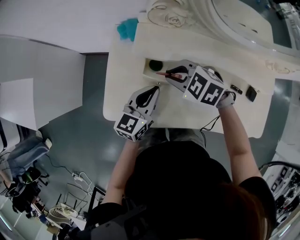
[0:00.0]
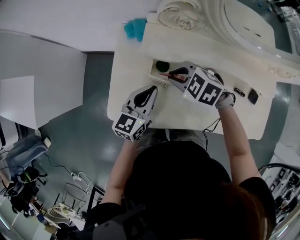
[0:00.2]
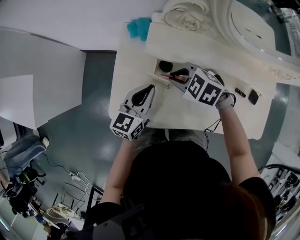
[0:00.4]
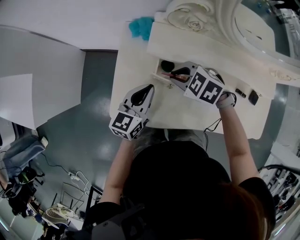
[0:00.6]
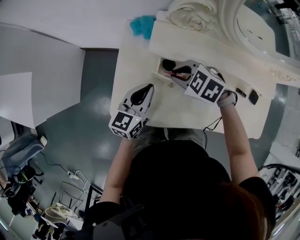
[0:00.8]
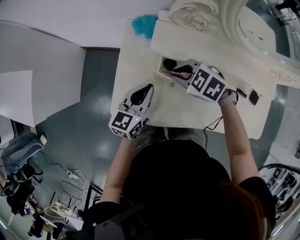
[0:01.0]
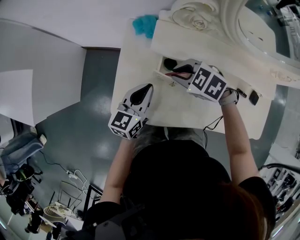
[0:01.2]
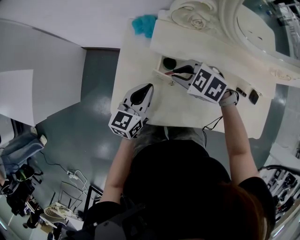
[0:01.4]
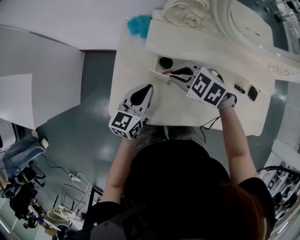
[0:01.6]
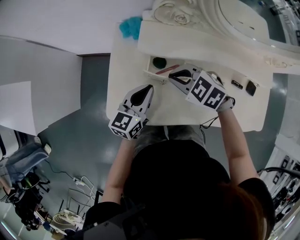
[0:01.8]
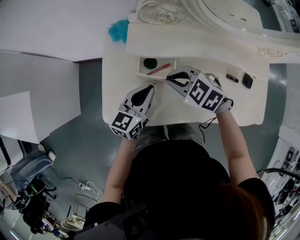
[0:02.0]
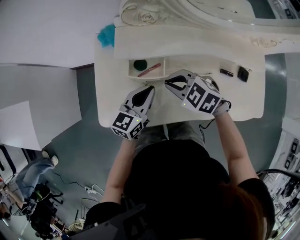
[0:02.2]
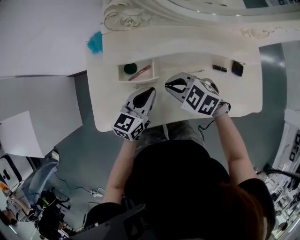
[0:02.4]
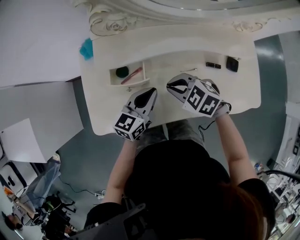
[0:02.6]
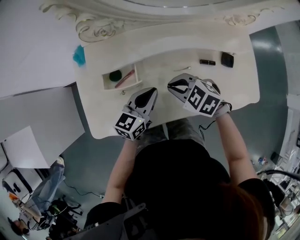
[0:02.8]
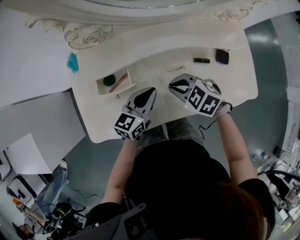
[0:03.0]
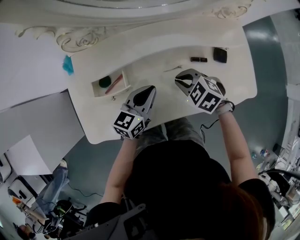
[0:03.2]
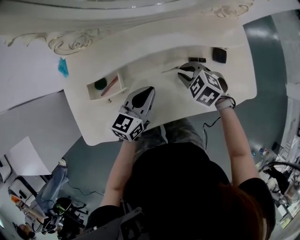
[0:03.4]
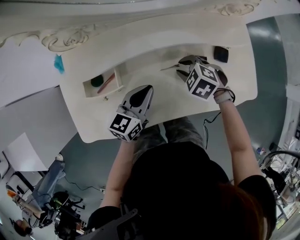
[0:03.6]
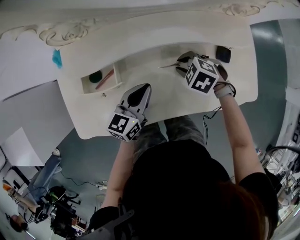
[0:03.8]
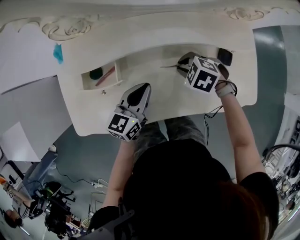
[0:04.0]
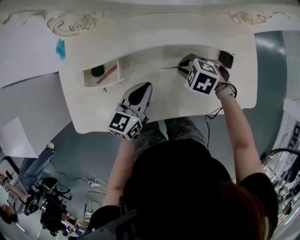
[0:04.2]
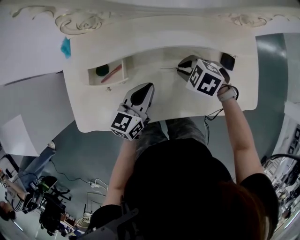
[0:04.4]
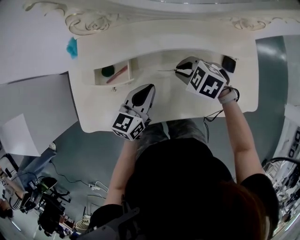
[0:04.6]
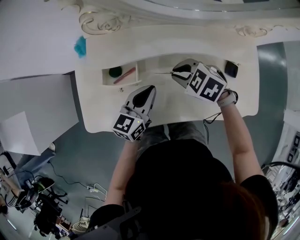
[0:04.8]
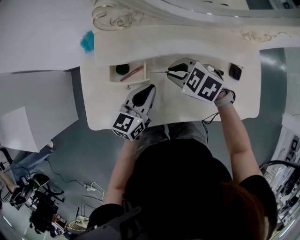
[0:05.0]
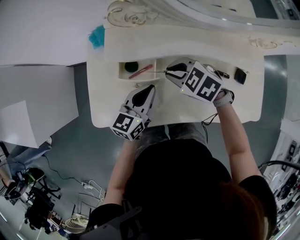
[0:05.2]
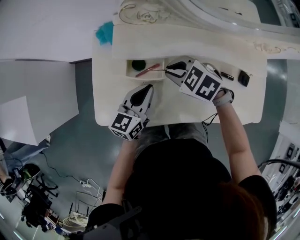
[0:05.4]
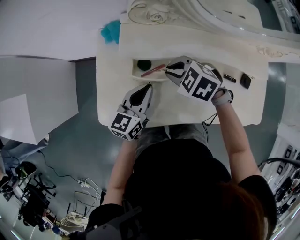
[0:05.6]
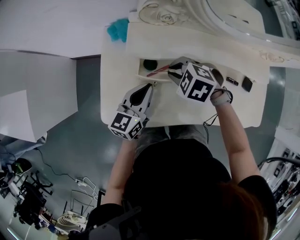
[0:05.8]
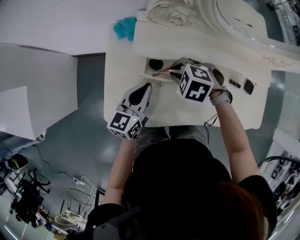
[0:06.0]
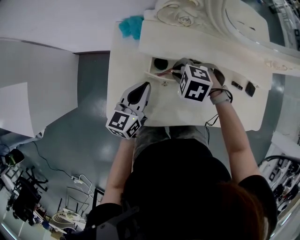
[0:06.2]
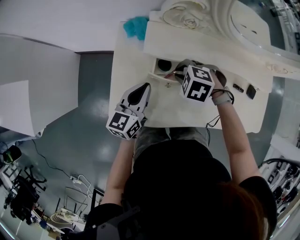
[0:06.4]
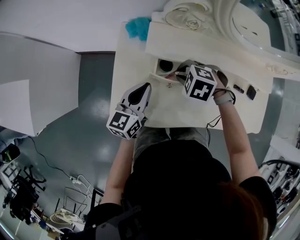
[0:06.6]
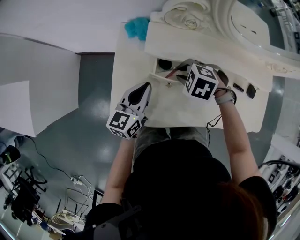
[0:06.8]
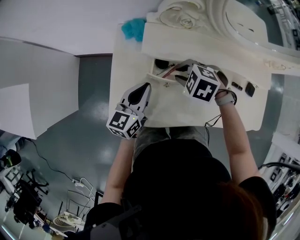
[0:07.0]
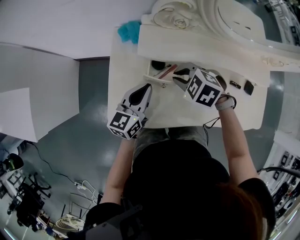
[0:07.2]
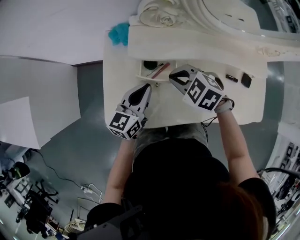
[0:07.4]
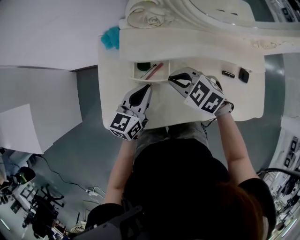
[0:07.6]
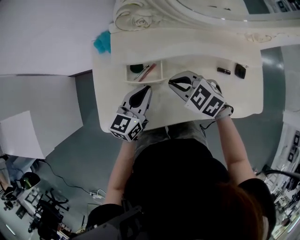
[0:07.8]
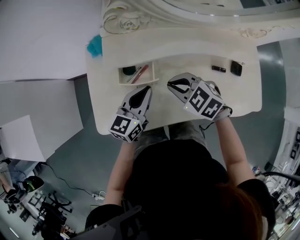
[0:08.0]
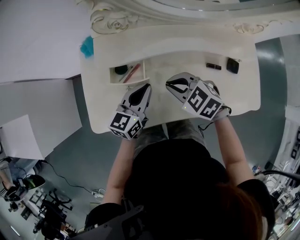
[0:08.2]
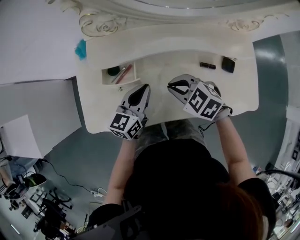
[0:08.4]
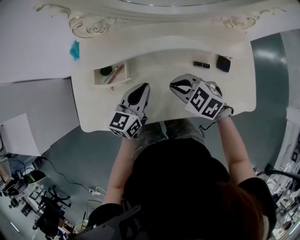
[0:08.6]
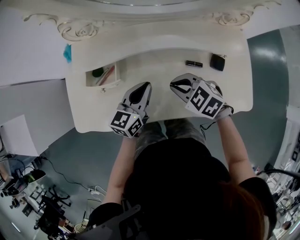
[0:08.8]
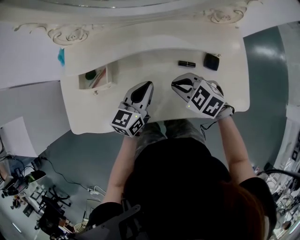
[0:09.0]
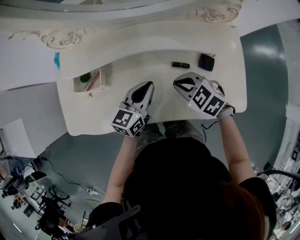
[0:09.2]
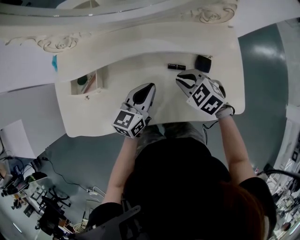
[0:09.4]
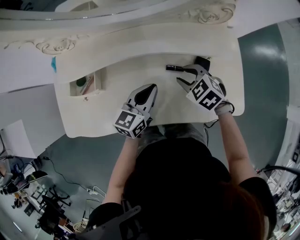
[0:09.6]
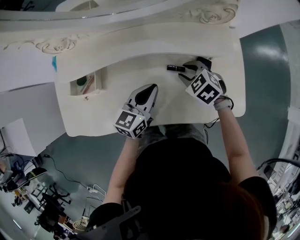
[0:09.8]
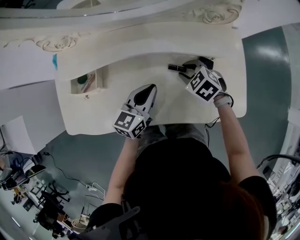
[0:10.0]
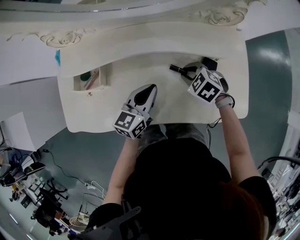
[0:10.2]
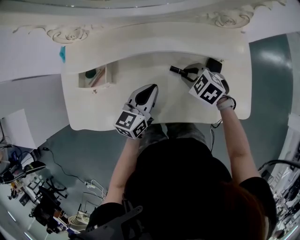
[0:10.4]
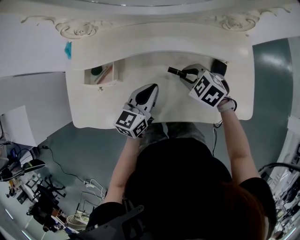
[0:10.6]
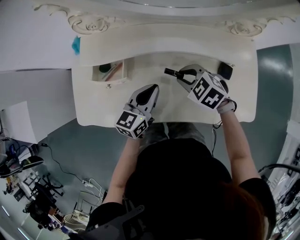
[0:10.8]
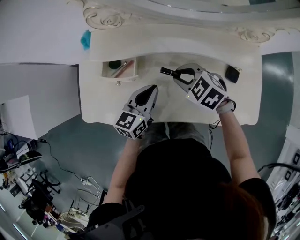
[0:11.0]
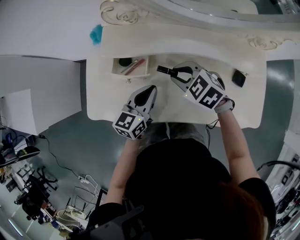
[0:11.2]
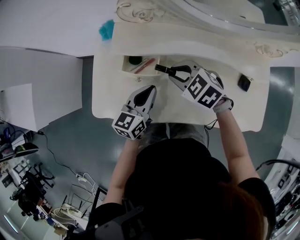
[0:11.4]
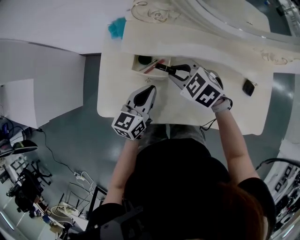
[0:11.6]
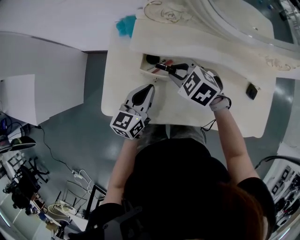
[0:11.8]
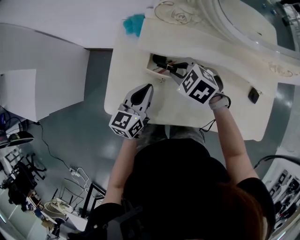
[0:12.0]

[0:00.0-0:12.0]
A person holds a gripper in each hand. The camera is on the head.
0:00.0 to 0:01.6: The left gripper moves to the left, roughly 5 cm.
0:01.6 to 0:03.0: The right gripper is displaced to the right and backward by some 20 cm, and rotates roughly 20 degrees, while the left gripper moves to the right, approximately 20 cm, and swivels about 30 degrees.
0:03.0 to 0:04.4: The right gripper shifts approximately 10 cm to the right and downward.
0:04.4 to 0:06.0: The left gripper shifts some 20 cm to the left; the right gripper heads to the left and forward, covering approximately 25 cm.
0:06.0 to 0:07.6: The right gripper shifts by approximately 5 cm, and turns by roughly 30 degrees.
0:07.6 to 0:09.0: The left gripper moves to the right, roughly 25 cm. Meanwhile the right gripper goes some 25 cm to the right and backward.
0:09.0 to 0:10.4: The right gripper moves to the right and downward, approximately 10 cm.
0:10.4 to 0:12.0: The two grippers go some 30 cm to the left.

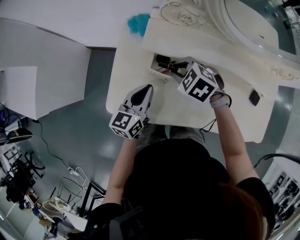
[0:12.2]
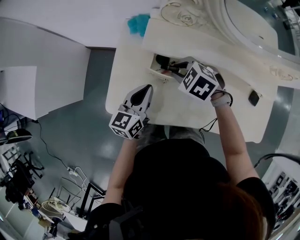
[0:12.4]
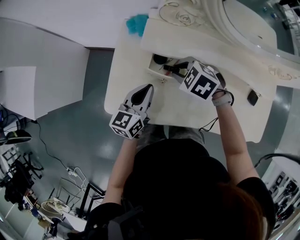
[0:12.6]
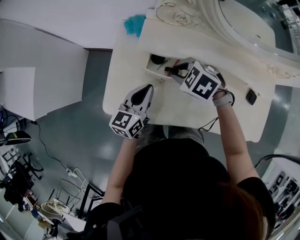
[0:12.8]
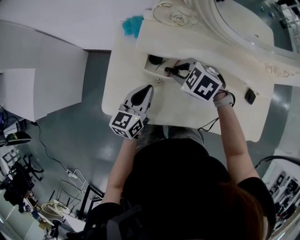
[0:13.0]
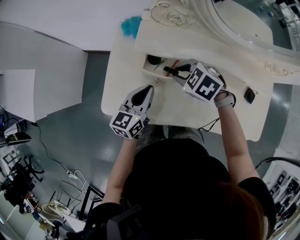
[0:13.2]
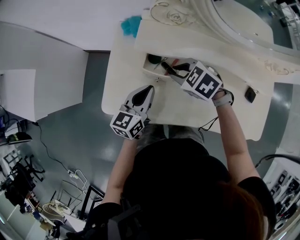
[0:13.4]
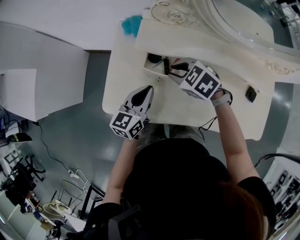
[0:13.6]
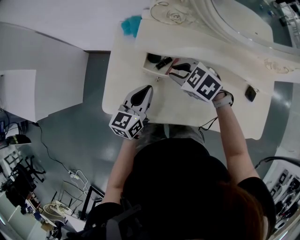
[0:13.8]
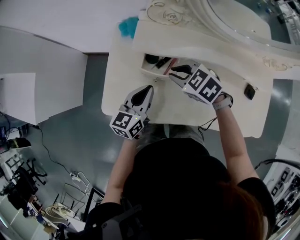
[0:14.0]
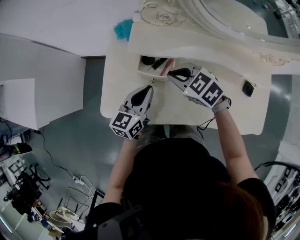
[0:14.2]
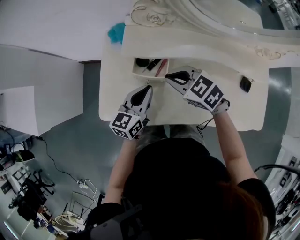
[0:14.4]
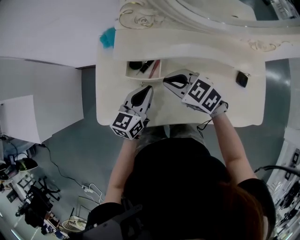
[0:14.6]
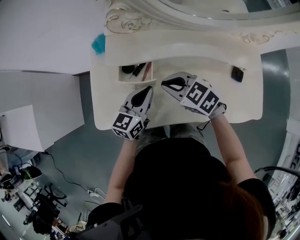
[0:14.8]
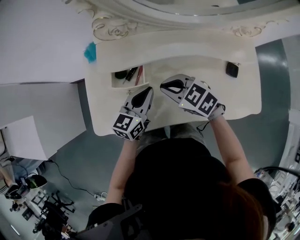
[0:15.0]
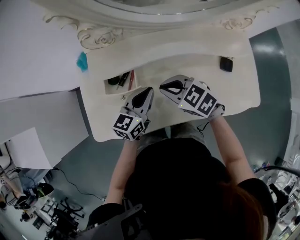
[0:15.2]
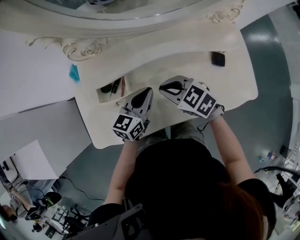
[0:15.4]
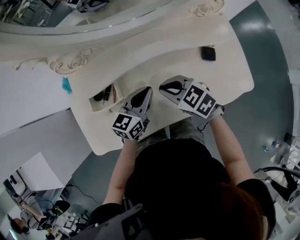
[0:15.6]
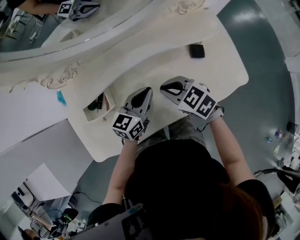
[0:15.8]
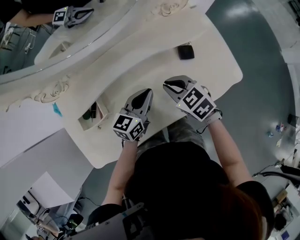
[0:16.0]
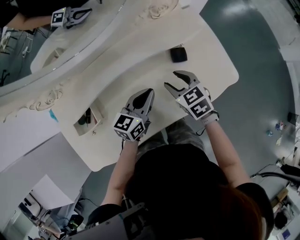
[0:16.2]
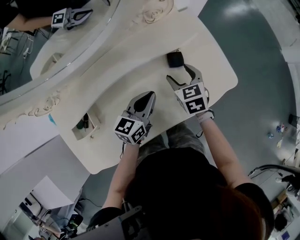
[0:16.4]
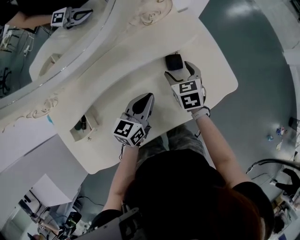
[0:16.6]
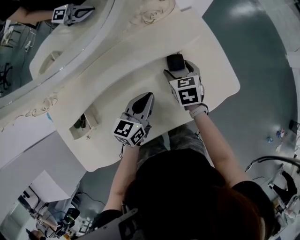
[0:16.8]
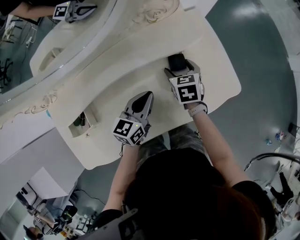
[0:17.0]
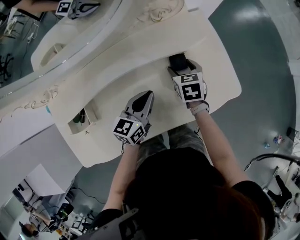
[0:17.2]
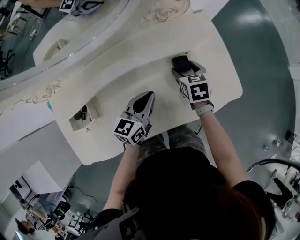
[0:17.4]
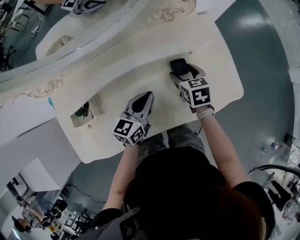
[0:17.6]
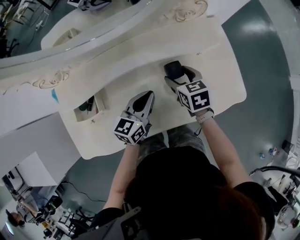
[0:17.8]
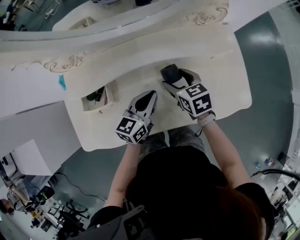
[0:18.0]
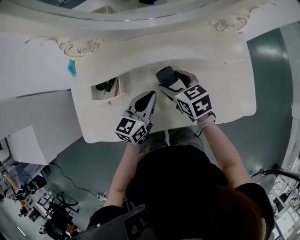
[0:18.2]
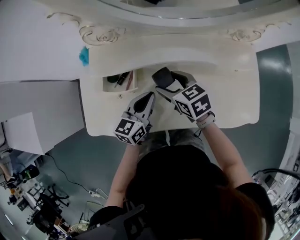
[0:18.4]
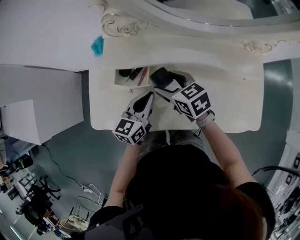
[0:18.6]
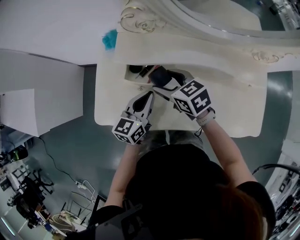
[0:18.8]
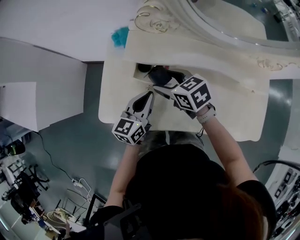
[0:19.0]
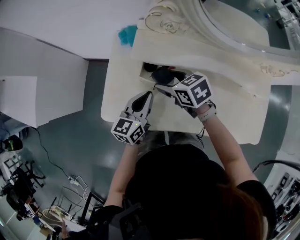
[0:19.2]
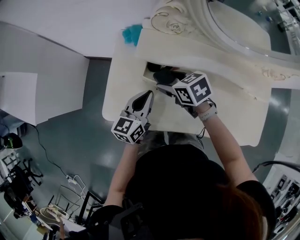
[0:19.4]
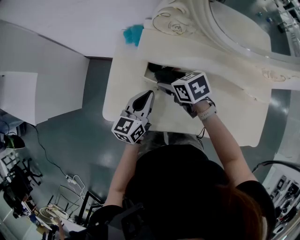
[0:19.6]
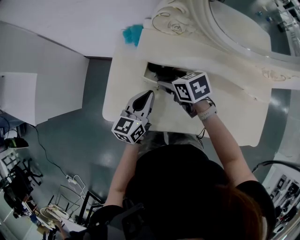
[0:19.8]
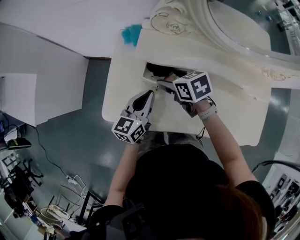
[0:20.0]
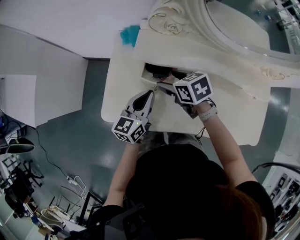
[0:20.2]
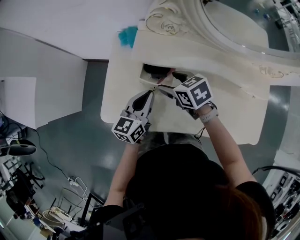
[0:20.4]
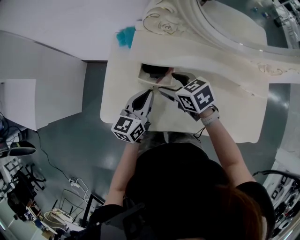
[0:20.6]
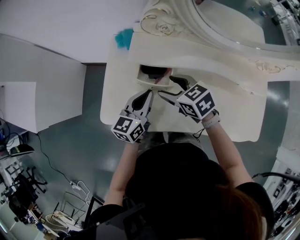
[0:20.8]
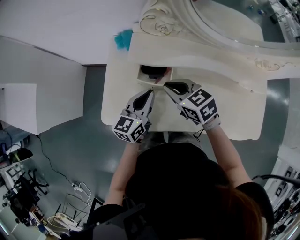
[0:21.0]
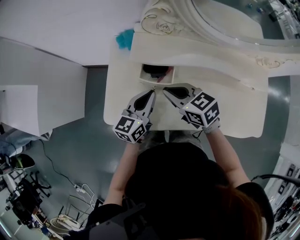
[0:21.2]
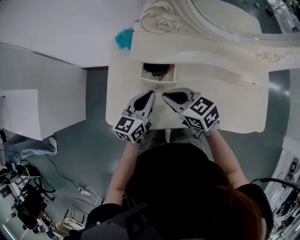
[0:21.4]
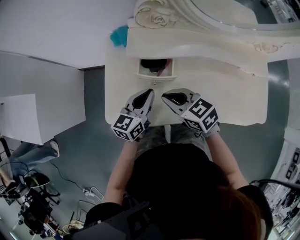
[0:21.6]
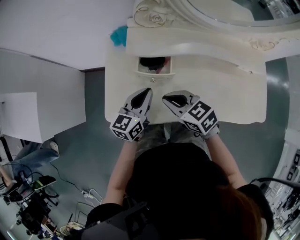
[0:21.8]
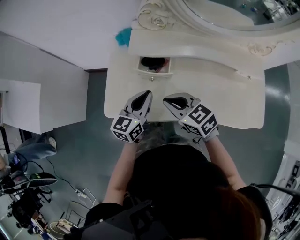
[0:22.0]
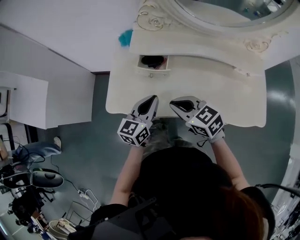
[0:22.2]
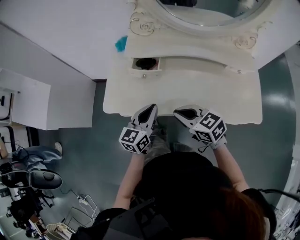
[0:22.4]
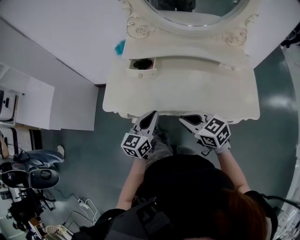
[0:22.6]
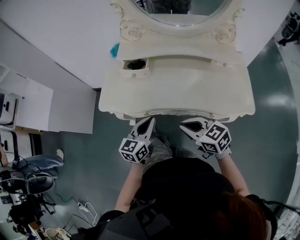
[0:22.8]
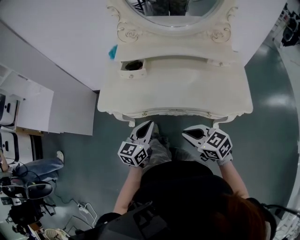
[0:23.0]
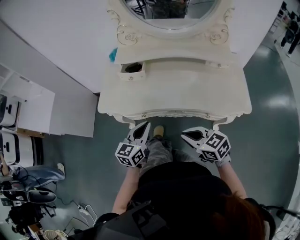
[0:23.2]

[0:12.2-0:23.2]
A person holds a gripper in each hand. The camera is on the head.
0:12.2 to 0:13.8: The grippers make only small movements.
0:13.8 to 0:15.4: The right gripper travels to the right and backward by some 15 cm, and rotates roughly 30 degrees; the left gripper travels to the right by some 20 cm, and swivels about 30 degrees.
0:15.4 to 0:17.0: The right gripper ends up about 35 cm from where it was, rotates approximately 60 degrees, and opens up; the left gripper changes place by some 20 cm.
0:17.0 to 0:18.4: The left gripper changes place by about 20 cm, and swivels about 20 degrees; the right gripper moves about 35 cm, and rotates some 50 degrees.
0:18.4 to 0:20.0: The left gripper goes approximately 15 cm to the left, while the right gripper goes some 15 cm to the left and forward.
0:20.0 to 0:21.6: The right gripper heads backward, covering some 10 cm, and closes.
0:21.6 to 0:23.2: The right gripper heads backward and to the right, covering some 35 cm. Meanwhile the left gripper is displaced backward by approximately 25 cm.

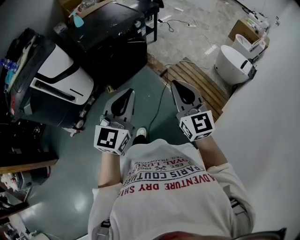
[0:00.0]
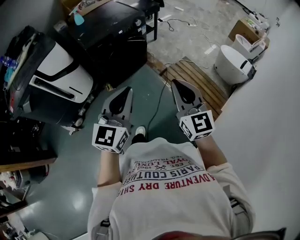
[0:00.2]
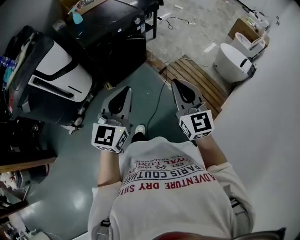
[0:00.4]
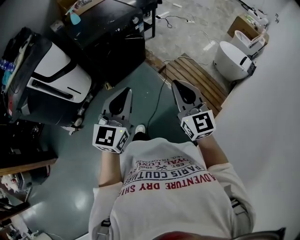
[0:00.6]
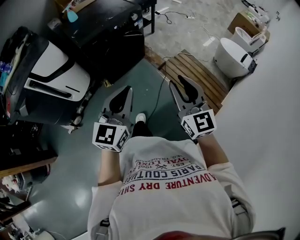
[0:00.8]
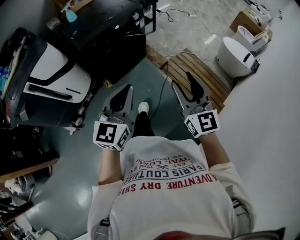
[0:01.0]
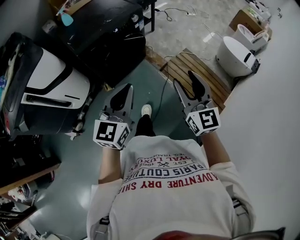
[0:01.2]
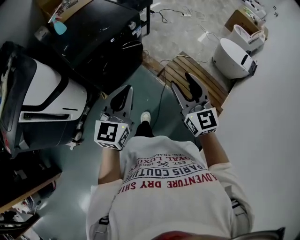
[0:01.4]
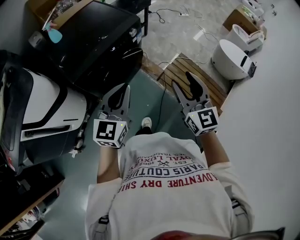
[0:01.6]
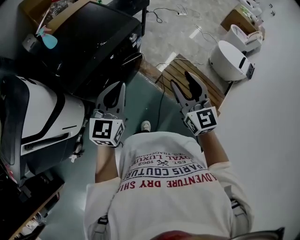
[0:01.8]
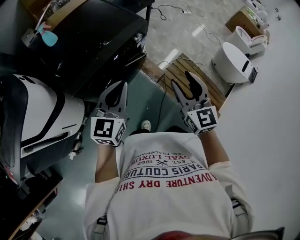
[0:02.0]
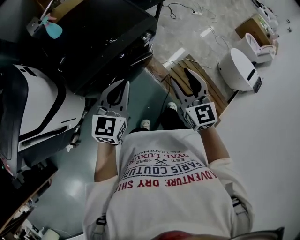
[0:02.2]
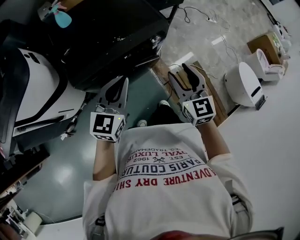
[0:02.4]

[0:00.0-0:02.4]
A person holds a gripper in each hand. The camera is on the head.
0:00.0 to 0:01.2: The grippers both shift forward and downward by about 15 cm. The right gripper opens.
0:01.2 to 0:02.4: Both grippers travel together forward, roughly 35 cm. The right gripper changes its angle by some 20 degrees.
